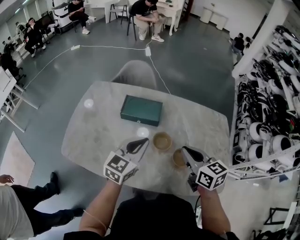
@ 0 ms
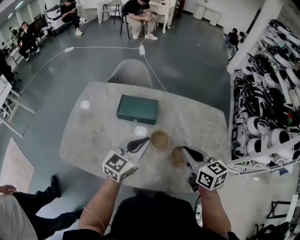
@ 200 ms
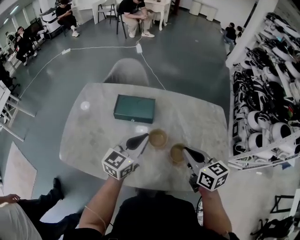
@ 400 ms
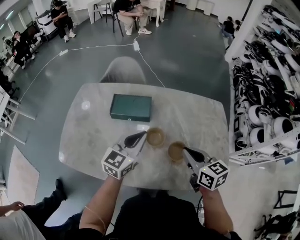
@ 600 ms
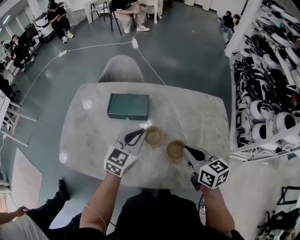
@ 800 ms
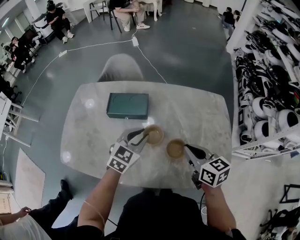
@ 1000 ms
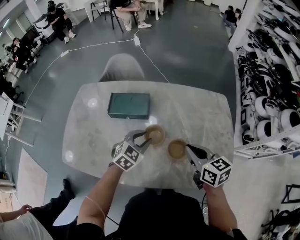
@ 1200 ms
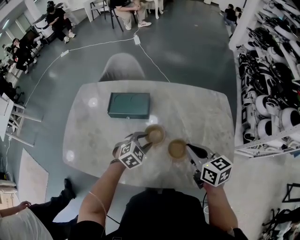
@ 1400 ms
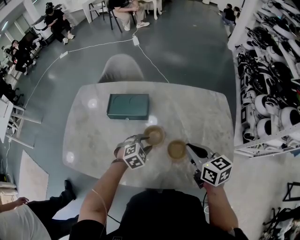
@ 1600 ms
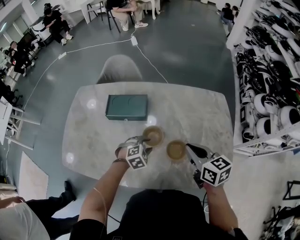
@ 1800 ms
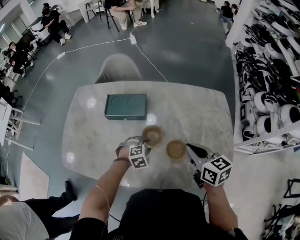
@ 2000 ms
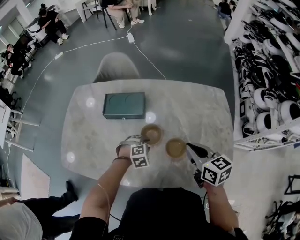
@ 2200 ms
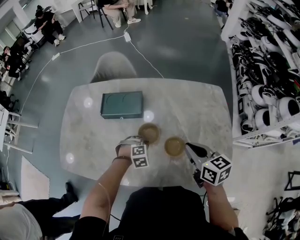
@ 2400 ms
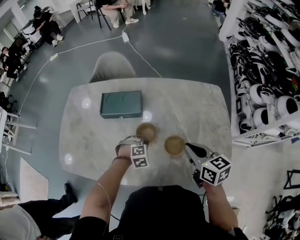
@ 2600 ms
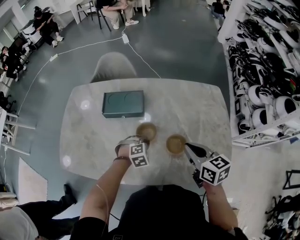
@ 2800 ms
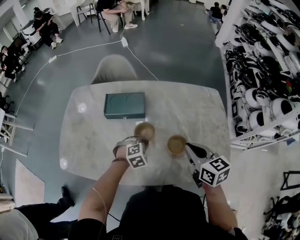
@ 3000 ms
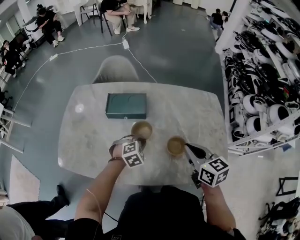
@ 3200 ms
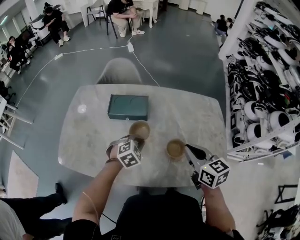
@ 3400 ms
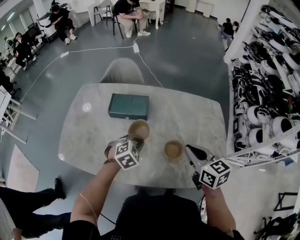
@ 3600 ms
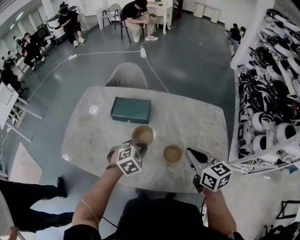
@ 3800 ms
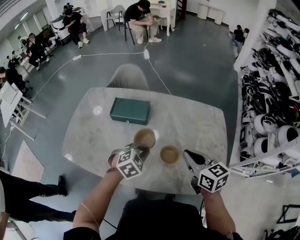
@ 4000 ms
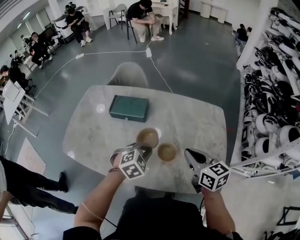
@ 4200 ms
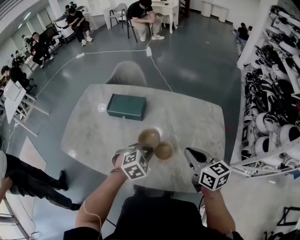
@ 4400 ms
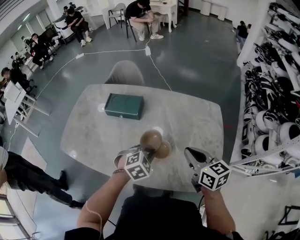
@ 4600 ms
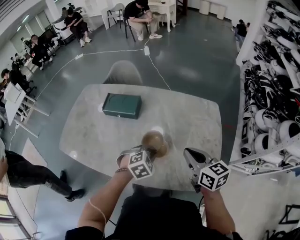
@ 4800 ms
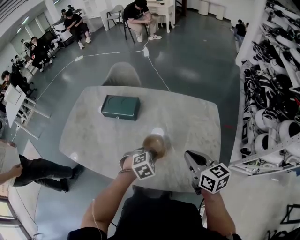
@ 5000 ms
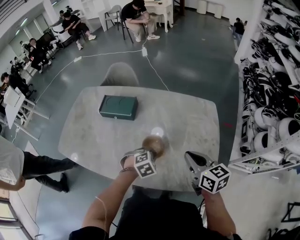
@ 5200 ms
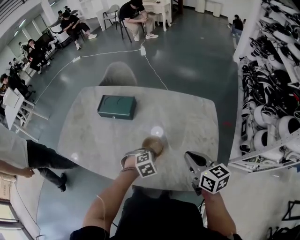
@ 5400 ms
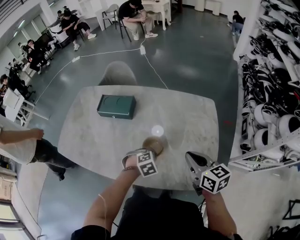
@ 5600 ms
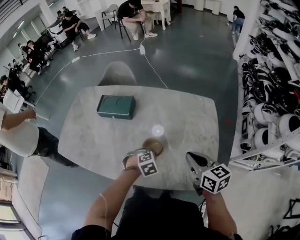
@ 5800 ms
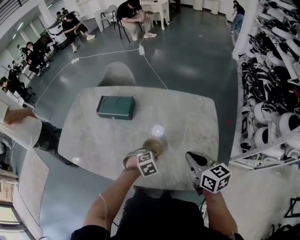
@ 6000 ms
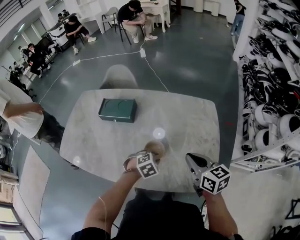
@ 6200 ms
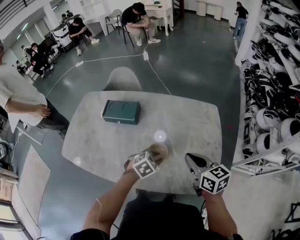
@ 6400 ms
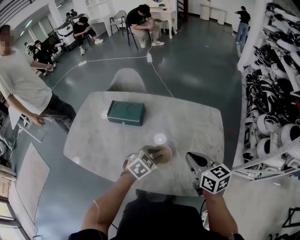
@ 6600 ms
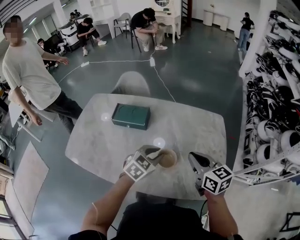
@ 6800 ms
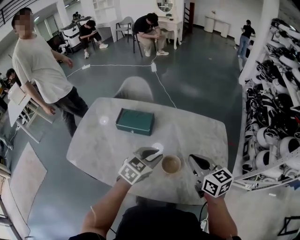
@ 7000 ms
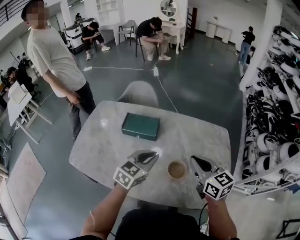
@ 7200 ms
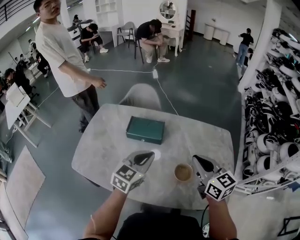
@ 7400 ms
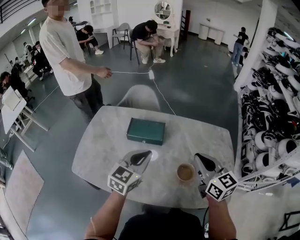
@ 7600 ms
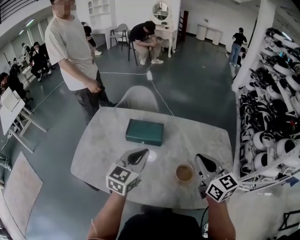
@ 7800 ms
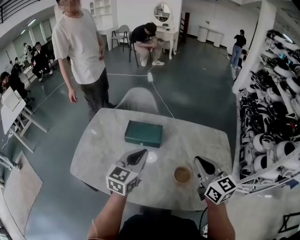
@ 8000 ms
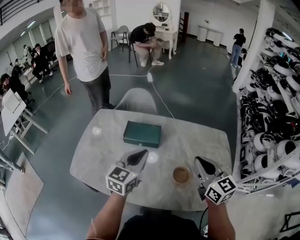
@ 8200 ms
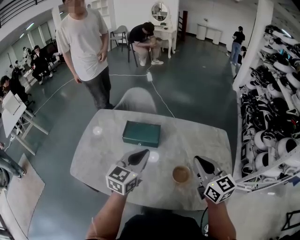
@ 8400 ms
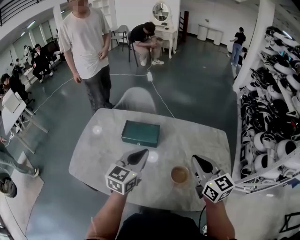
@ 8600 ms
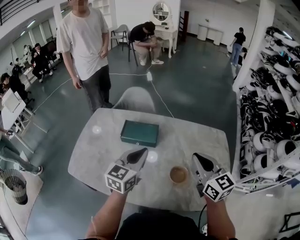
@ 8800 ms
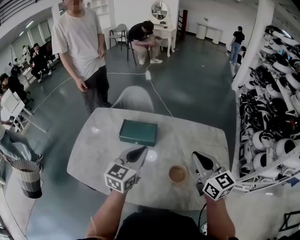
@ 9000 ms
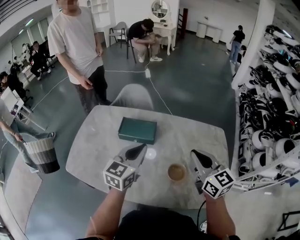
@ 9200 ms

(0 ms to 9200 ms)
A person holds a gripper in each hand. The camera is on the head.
0 ms - 1600 ms: The left gripper shifts approximately 25 cm downward and to the right, tilts its fingers about 40 degrees downward, and opens. Meanwhile the right gripper moves to the right and downward, approximately 15 cm.
1600 ms - 3000 ms: The left gripper closes up.
3000 ms - 4600 ms: The left gripper heads to the right and upward, covering some 20 cm; the right gripper shifts approximately 15 cm to the right.
4600 ms - 6200 ms: The left gripper moves downward and to the right, about 10 cm, and opens up. The right gripper moves to the right, approximately 5 cm.
6200 ms - 7600 ms: The grippers both shift to the left and upward by approximately 35 cm. The right gripper rotates roughly 20 degrees. The left gripper points its fingers approximately 50 degrees further upward, and closes.
7600 ms - 9200 ms: The right gripper changes place by approximately 5 cm. Meanwhile the left gripper moves some 5 cm.

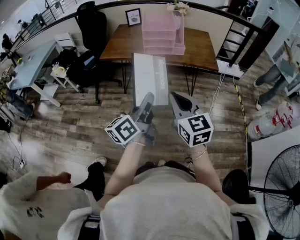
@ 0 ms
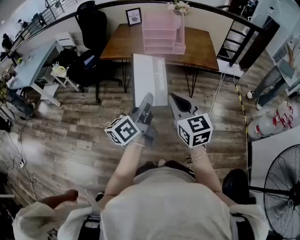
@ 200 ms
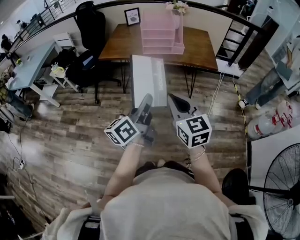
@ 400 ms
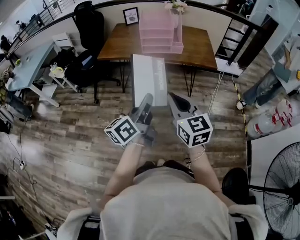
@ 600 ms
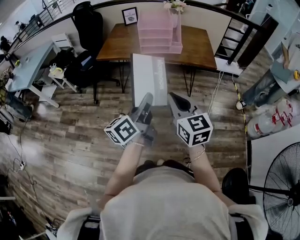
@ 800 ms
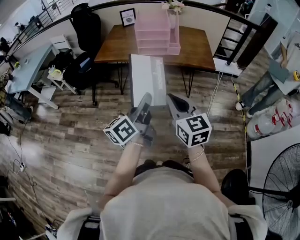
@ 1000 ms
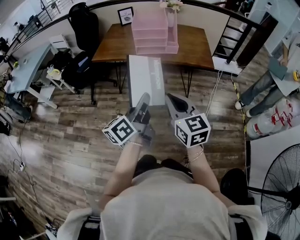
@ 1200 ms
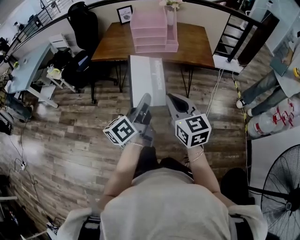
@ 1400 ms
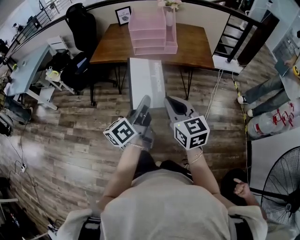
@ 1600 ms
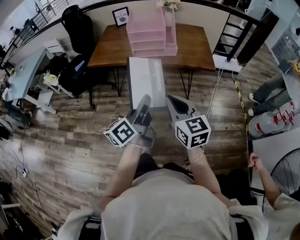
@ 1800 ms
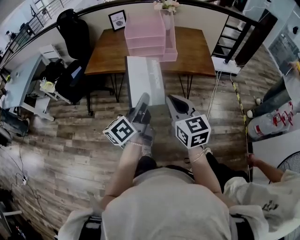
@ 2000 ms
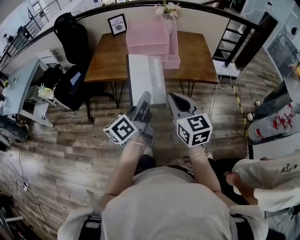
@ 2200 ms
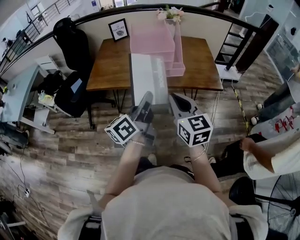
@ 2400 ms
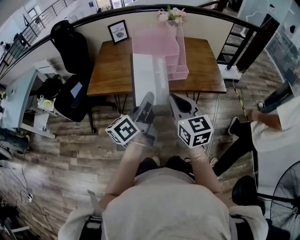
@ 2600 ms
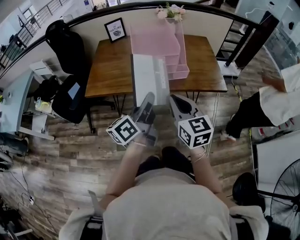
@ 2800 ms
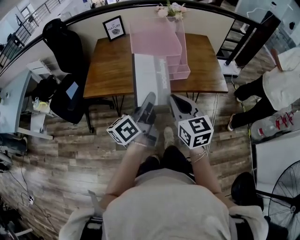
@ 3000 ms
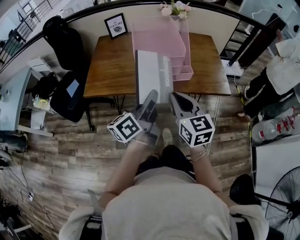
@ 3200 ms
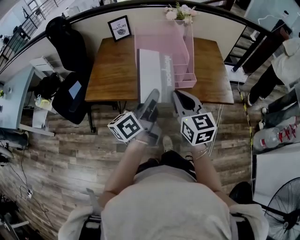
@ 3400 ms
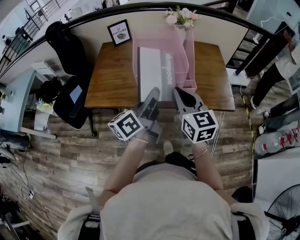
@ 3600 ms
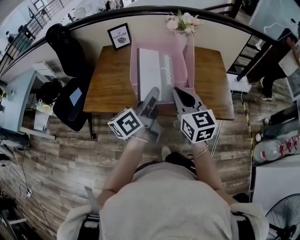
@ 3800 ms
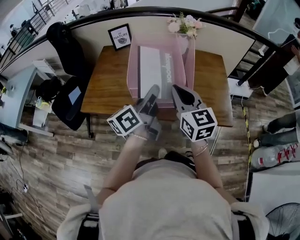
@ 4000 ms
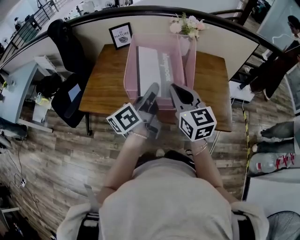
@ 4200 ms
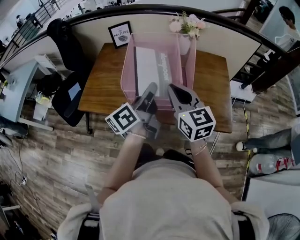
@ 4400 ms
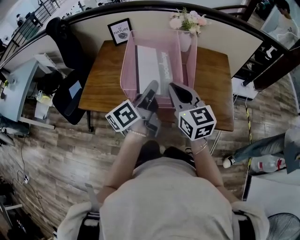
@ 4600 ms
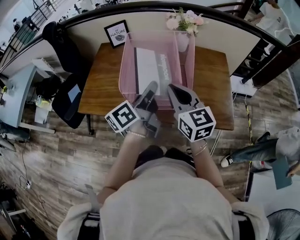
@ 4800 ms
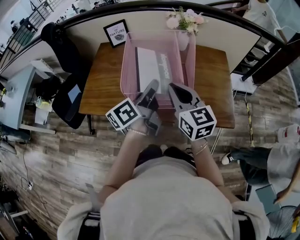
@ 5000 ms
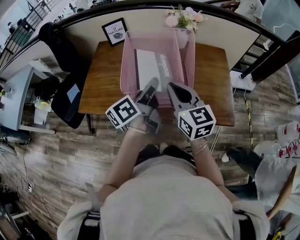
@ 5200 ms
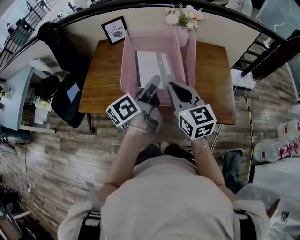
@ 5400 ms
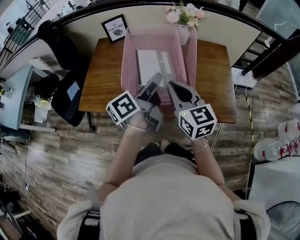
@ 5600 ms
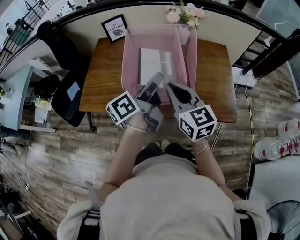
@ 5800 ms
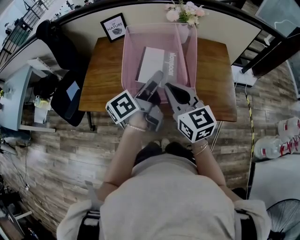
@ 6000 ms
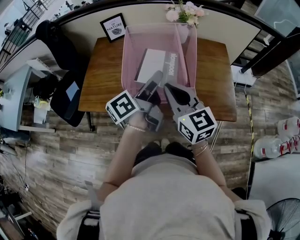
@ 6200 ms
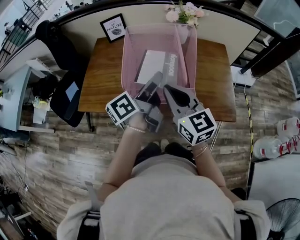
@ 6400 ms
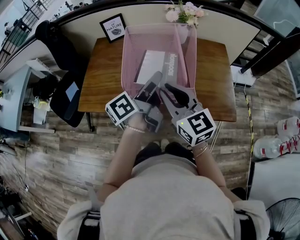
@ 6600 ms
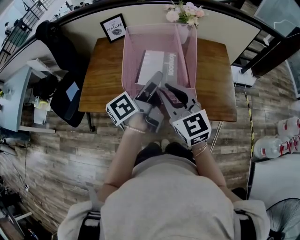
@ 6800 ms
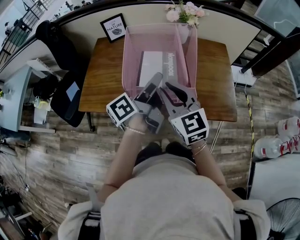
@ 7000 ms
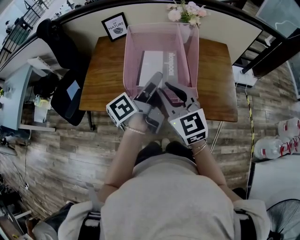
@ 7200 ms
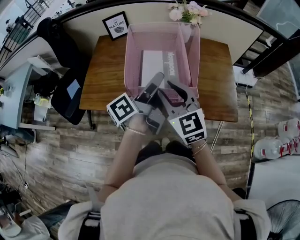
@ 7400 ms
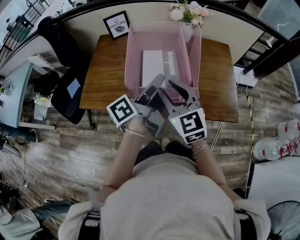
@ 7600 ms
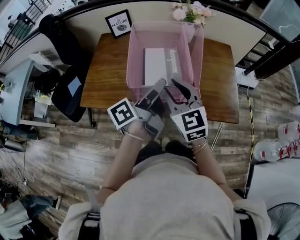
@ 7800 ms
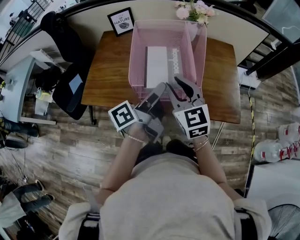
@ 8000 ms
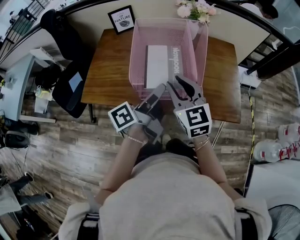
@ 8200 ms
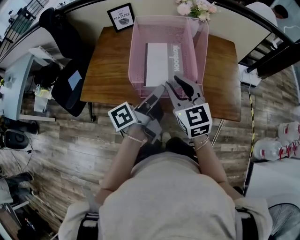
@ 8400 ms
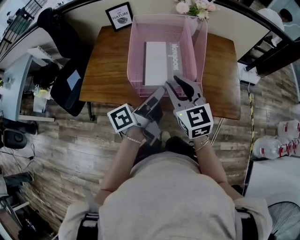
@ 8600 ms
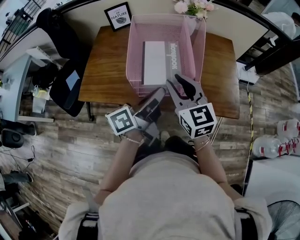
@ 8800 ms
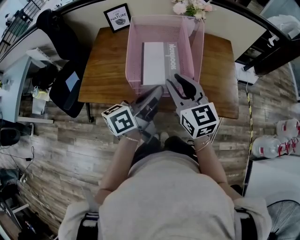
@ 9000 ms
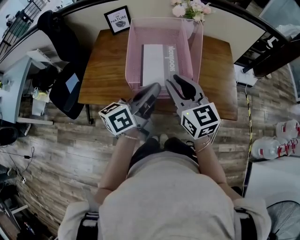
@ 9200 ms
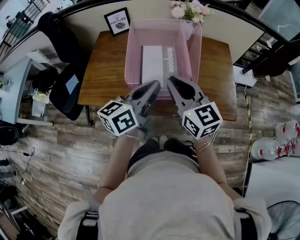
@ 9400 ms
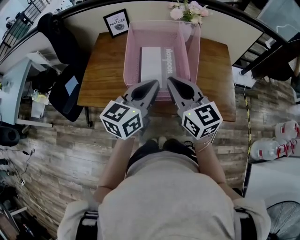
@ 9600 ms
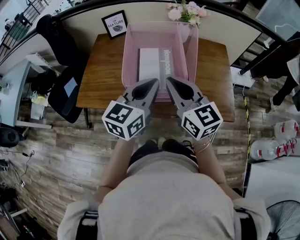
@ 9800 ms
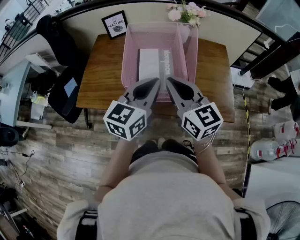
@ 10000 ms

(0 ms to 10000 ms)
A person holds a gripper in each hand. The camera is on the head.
0 ms - 1400 ms: The right gripper ends up roughly 5 cm from where it was. The left gripper is displaced to the right by approximately 5 cm.
1400 ms - 2800 ms: The grippers both shift forward by roughly 30 cm.
2800 ms - 4200 ms: Both grippers move forward, approximately 20 cm.
4200 ms - 5800 ms: The left gripper opens.
5800 ms - 7200 ms: The right gripper opens.
7200 ms - 8600 ms: The left gripper is displaced backward by approximately 5 cm, and closes up.
8600 ms - 10000 ms: Both grippers travel together upward, roughly 5 cm. The right gripper closes, while the left gripper twists about 70 degrees clockwise, seen from behind, and closes up.

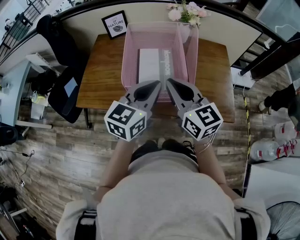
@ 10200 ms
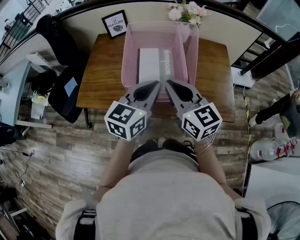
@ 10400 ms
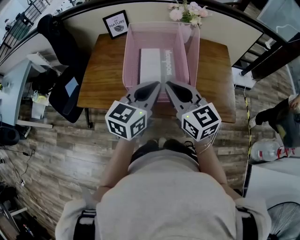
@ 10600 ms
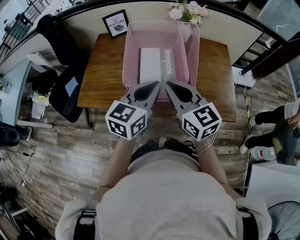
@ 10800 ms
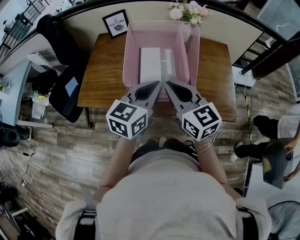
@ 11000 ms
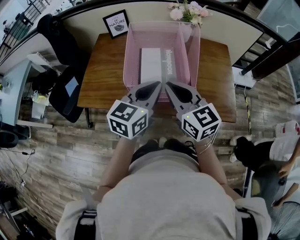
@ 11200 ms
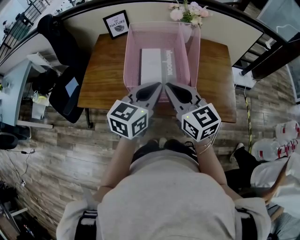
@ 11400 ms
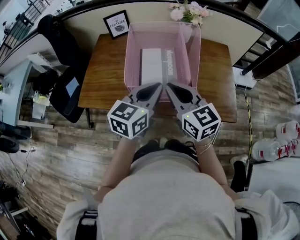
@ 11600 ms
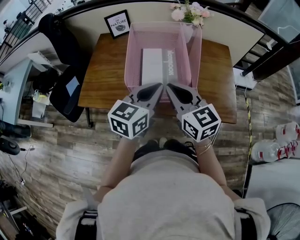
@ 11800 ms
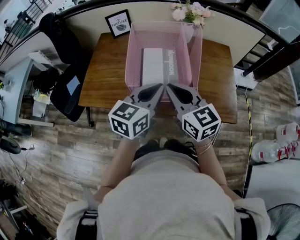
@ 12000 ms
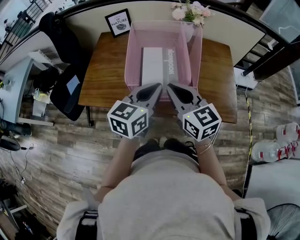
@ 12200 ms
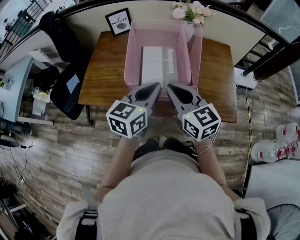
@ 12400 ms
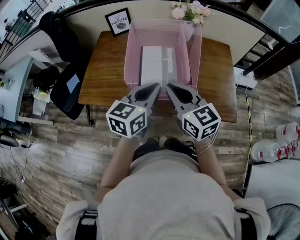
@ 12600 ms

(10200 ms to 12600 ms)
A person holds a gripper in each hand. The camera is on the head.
10200 ms - 11400 ms: The grippers make only small movements.
11400 ms - 12600 ms: Both grippers stay put.

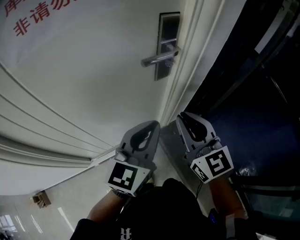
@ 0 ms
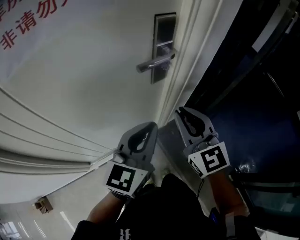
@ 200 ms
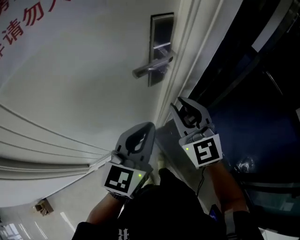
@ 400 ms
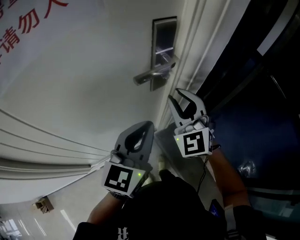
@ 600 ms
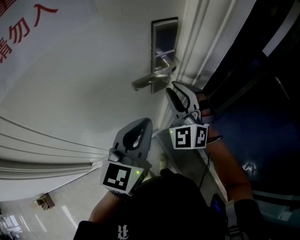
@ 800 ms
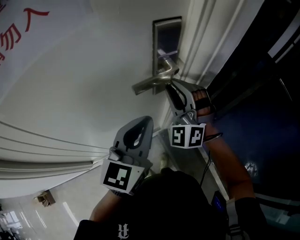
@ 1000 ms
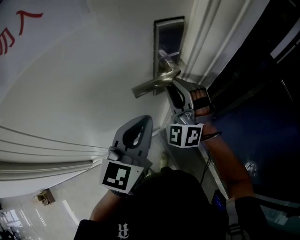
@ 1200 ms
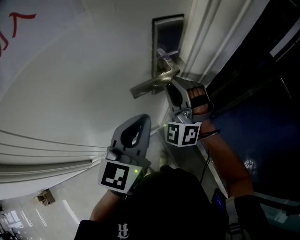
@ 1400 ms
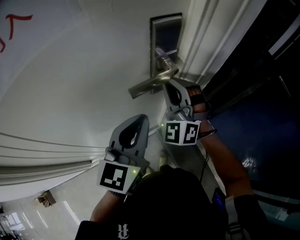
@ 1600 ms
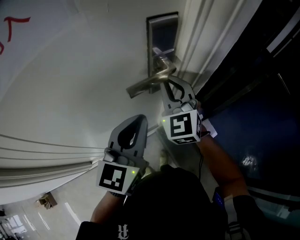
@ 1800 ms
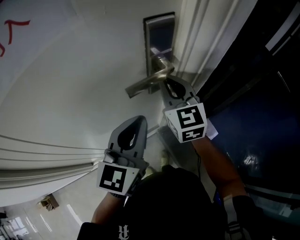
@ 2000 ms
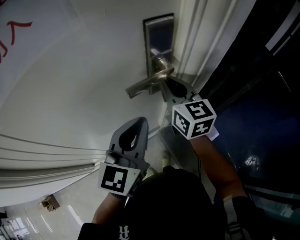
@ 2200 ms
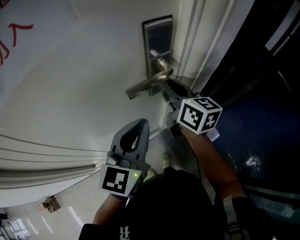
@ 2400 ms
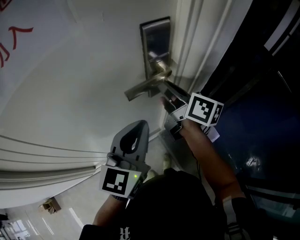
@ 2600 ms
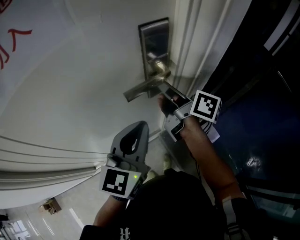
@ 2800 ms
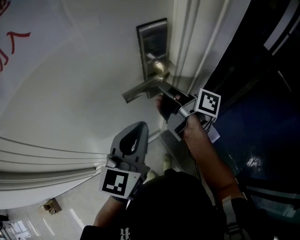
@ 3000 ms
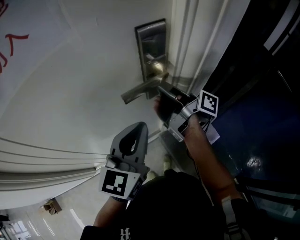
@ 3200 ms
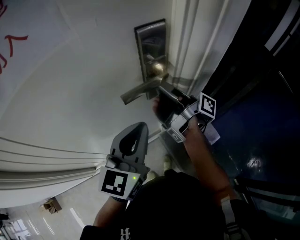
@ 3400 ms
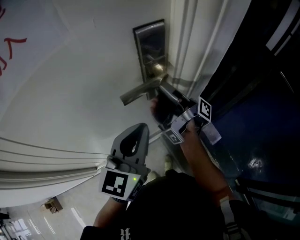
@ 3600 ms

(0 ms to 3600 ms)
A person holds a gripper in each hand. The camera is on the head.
0 ms - 1800 ms: The right gripper moves forward, about 20 cm, and turns by roughly 30 degrees. The left gripper heads forward, covering about 10 cm.
1800 ms - 3600 ms: The right gripper twists some 130 degrees clockwise, seen from behind.
